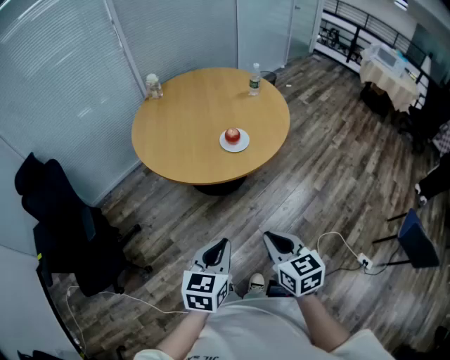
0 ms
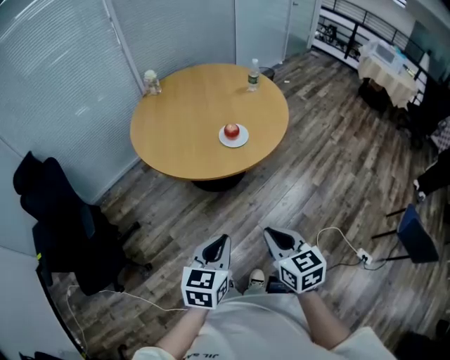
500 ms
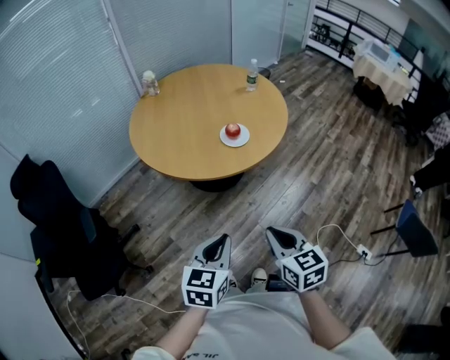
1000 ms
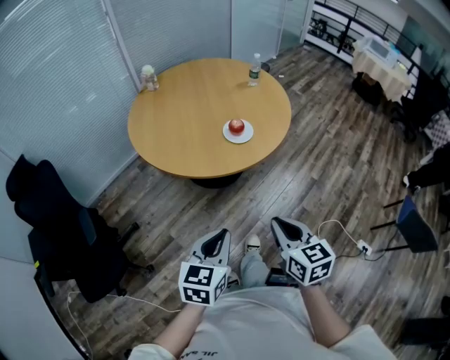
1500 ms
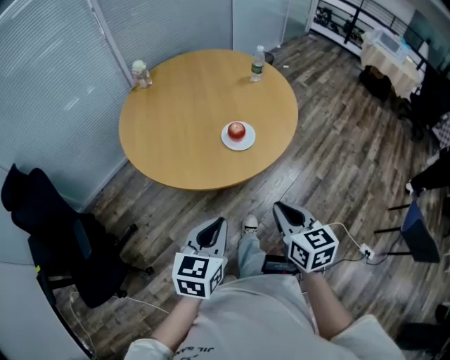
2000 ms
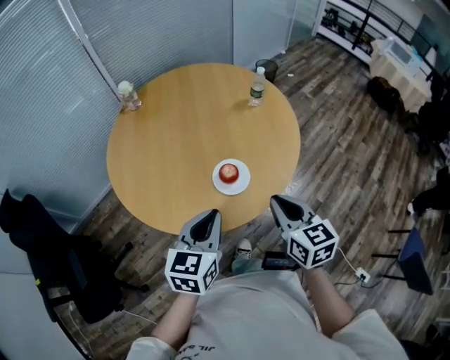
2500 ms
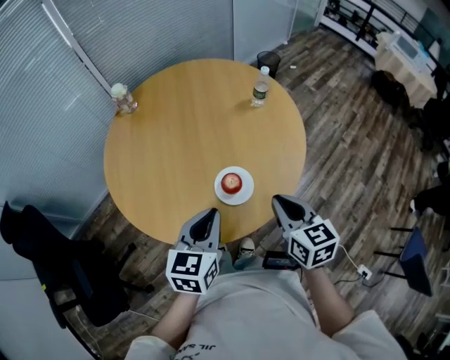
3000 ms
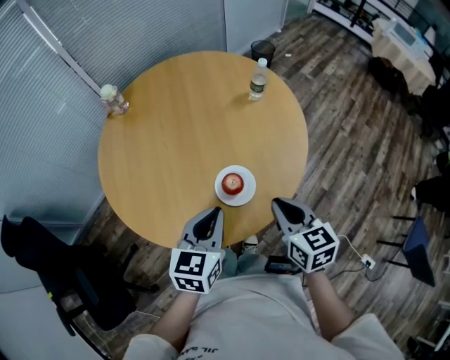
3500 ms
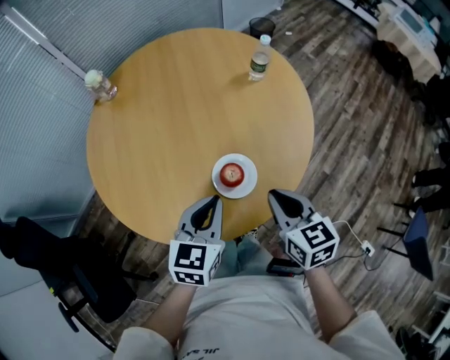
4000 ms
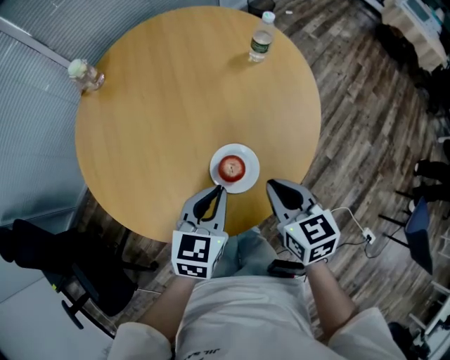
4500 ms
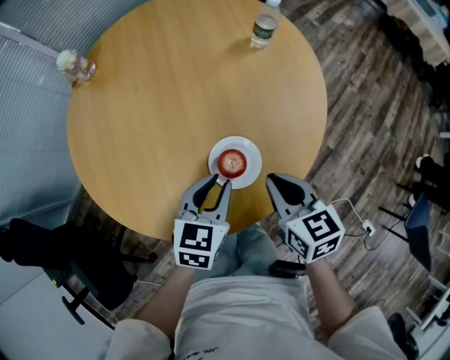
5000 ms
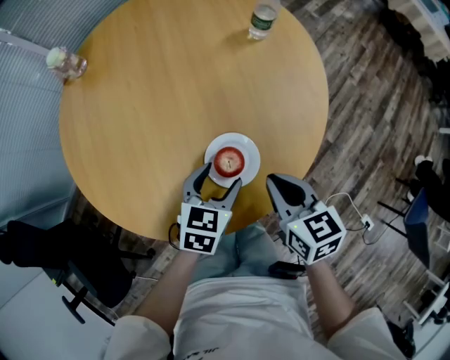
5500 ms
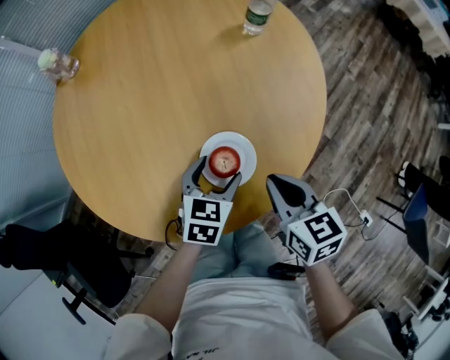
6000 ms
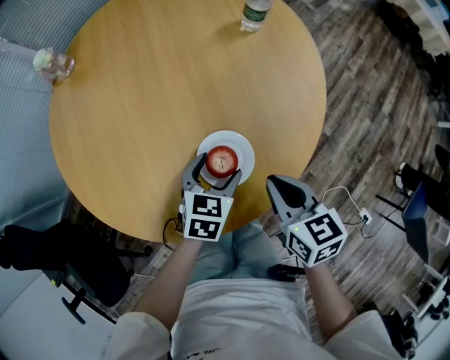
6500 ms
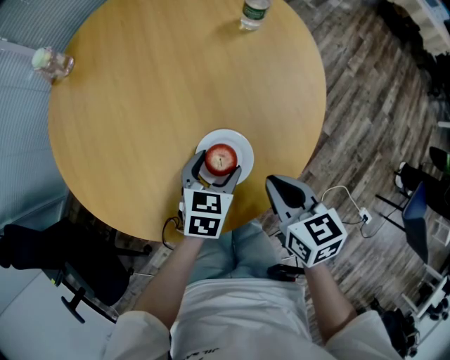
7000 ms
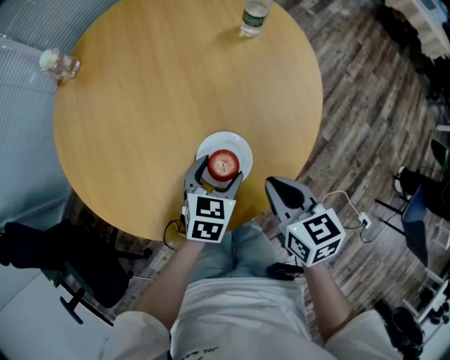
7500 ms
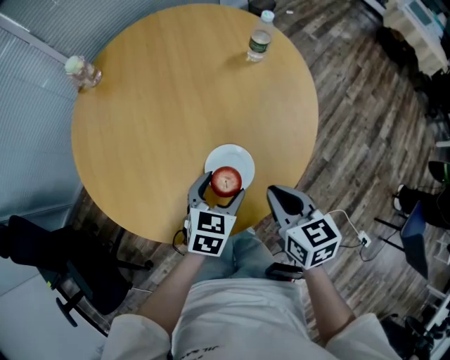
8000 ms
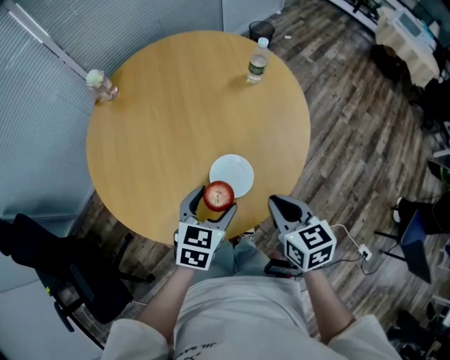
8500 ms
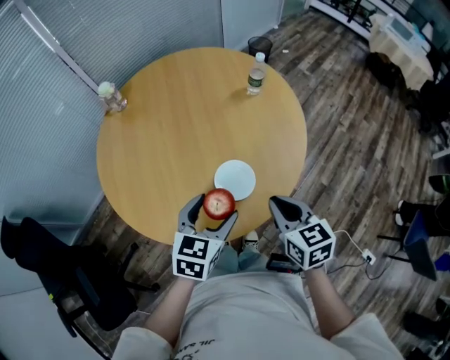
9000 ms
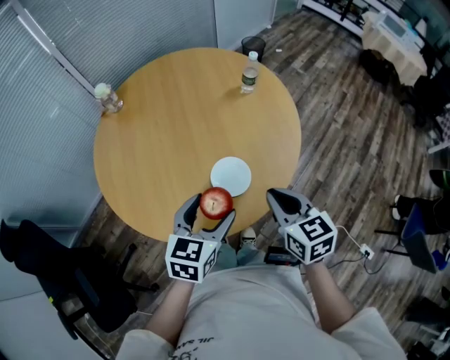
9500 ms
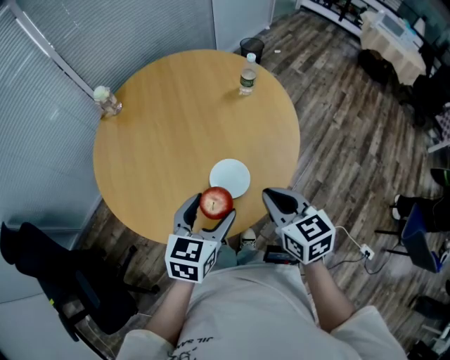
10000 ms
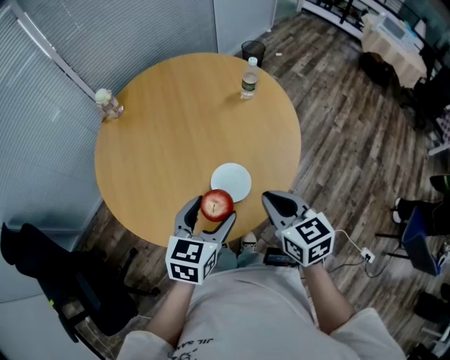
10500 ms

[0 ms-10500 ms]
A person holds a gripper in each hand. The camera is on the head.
0 ms to 2000 ms: The grippers both shift forward by roughly 15 cm.
2000 ms to 4000 ms: Both grippers move forward, roughly 30 cm.
4000 ms to 6500 ms: The right gripper goes approximately 10 cm downward. The left gripper is displaced downward by about 20 cm, swivels about 20 degrees, and opens.
6500 ms to 8500 ms: The right gripper goes roughly 5 cm upward, while the left gripper shifts approximately 15 cm upward and backward.
8500 ms to 10500 ms: Both grippers travel together upward, about 5 cm.

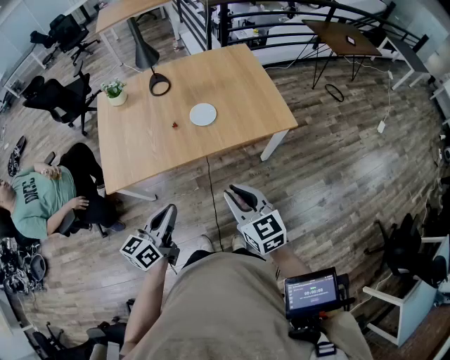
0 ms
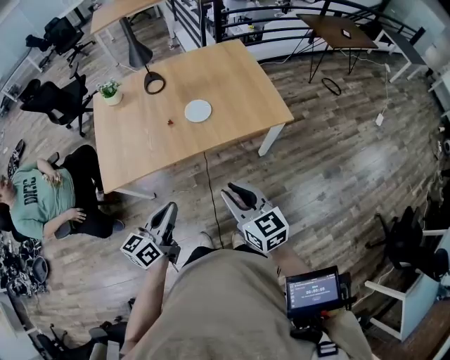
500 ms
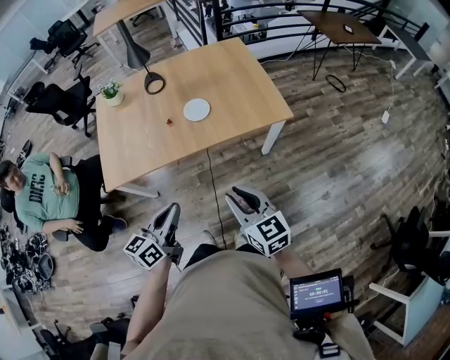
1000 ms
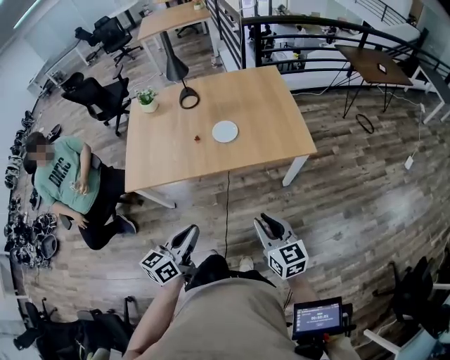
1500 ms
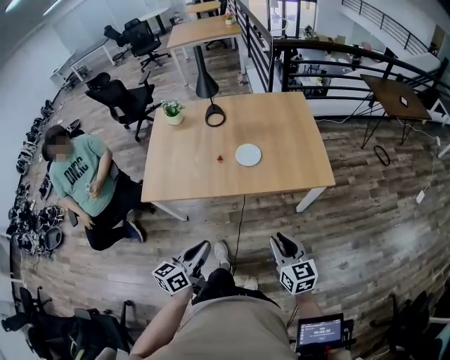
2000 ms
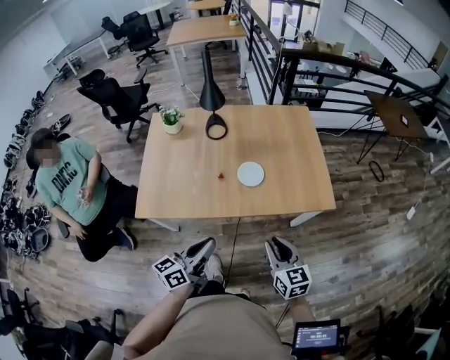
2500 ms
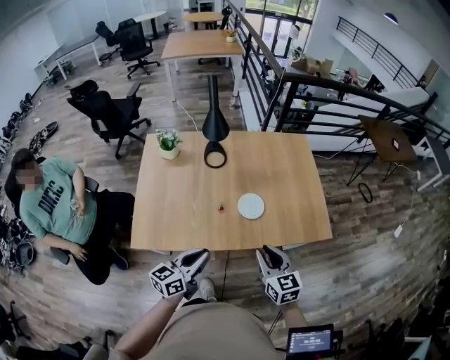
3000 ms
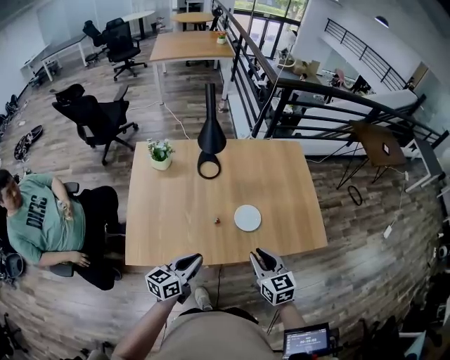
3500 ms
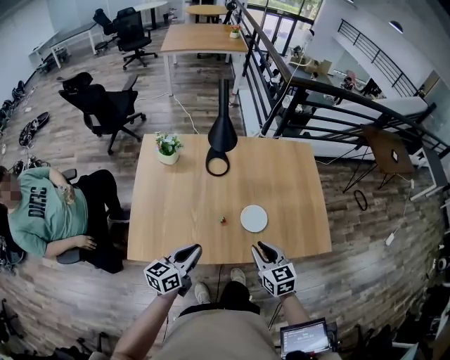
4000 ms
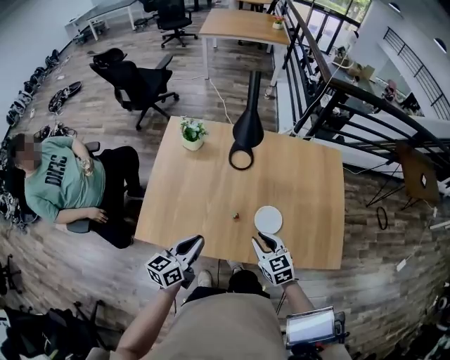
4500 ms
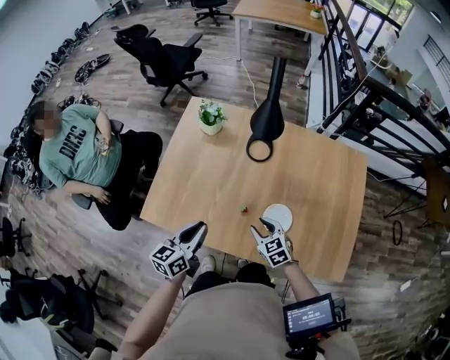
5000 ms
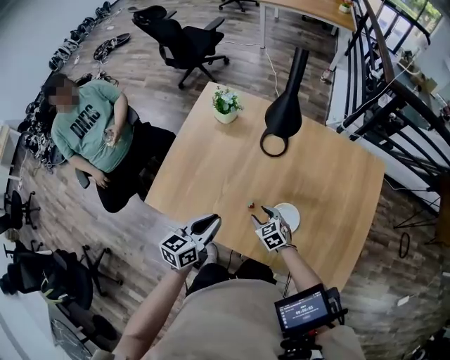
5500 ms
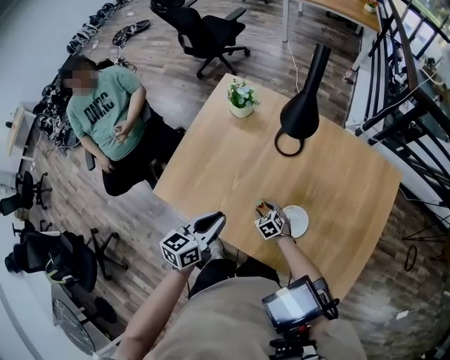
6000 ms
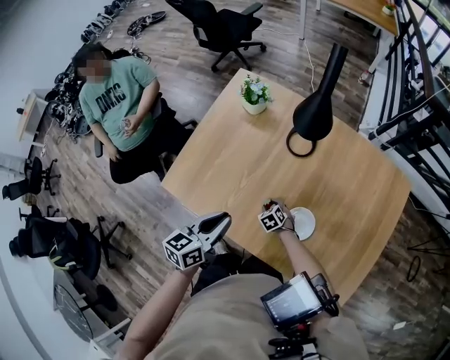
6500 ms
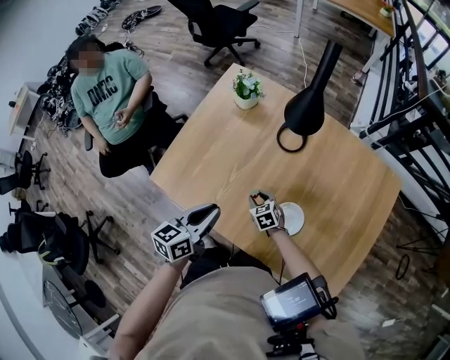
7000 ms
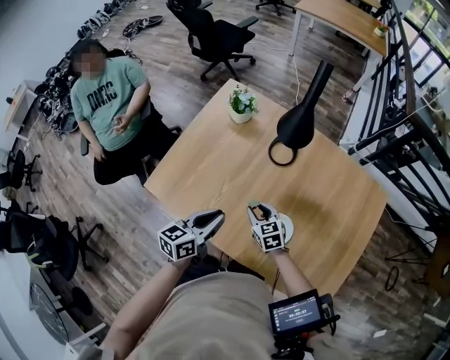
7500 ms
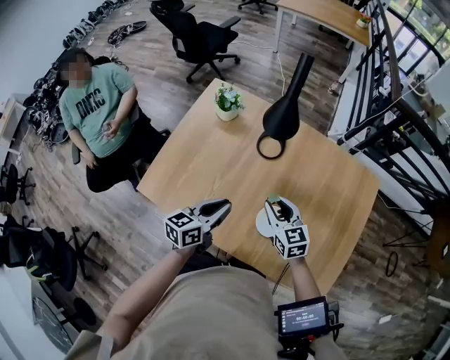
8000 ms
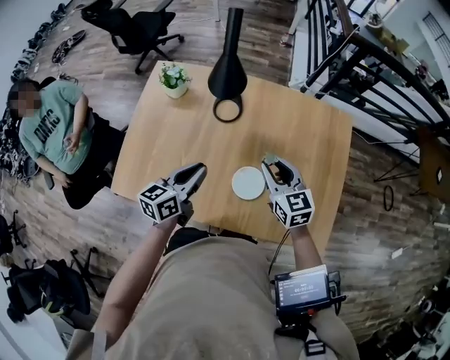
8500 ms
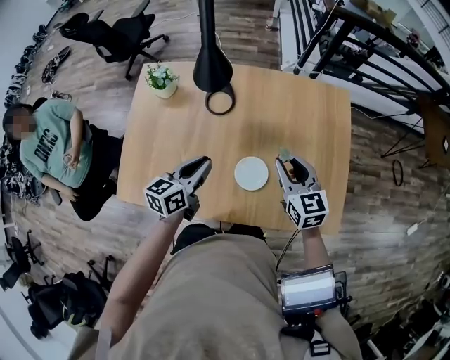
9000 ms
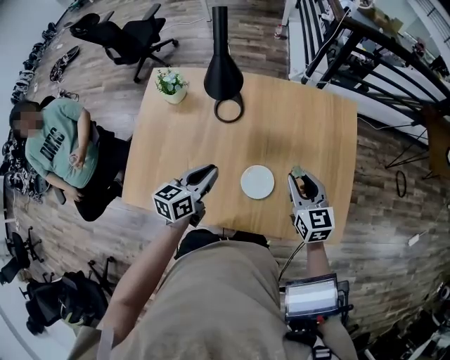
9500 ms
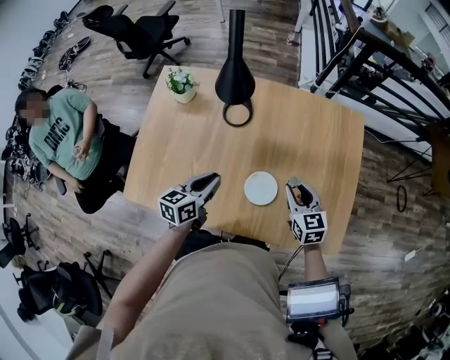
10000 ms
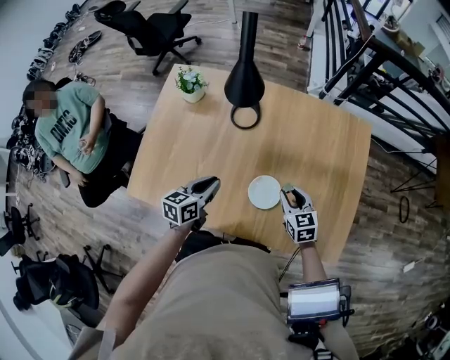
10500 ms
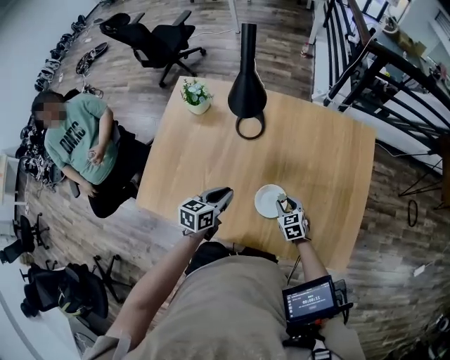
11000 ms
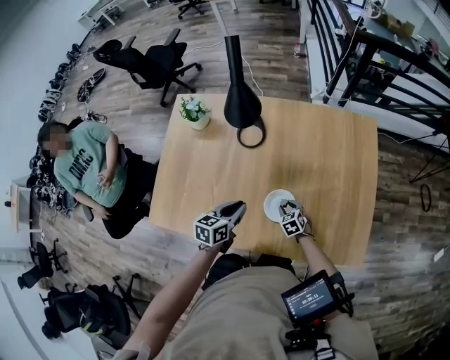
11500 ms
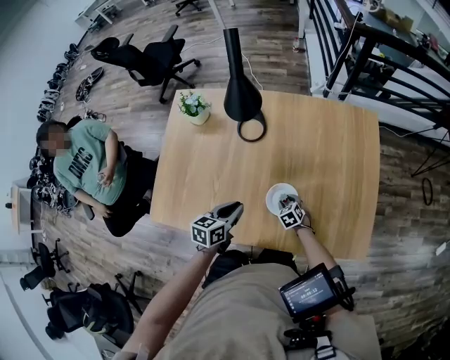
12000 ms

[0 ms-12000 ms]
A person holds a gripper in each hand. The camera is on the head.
0 ms to 2000 ms: The right gripper moves to the right and downward, about 10 cm, while the left gripper heads to the right, covering approximately 5 cm.
2000 ms to 4000 ms: Both grippers move forward and to the left, about 40 cm.
4000 ms to 6000 ms: The right gripper goes roughly 35 cm downward, changes its angle by about 50 degrees, and opens up, while the left gripper ends up about 10 cm from where it was, and turns by roughly 30 degrees.
6000 ms to 8000 ms: The right gripper is displaced upward by about 25 cm, and tilts its fingers roughly 30 degrees upward, while the left gripper shifts about 5 cm to the right.
8000 ms to 10000 ms: The left gripper shifts by approximately 5 cm, while the right gripper goes approximately 15 cm to the right, and turns by some 20 degrees.
10000 ms to 12000 ms: The left gripper heads downward, covering approximately 5 cm. Meanwhile the right gripper is displaced downward by some 25 cm, and angles its fingers downward, by about 30 degrees.

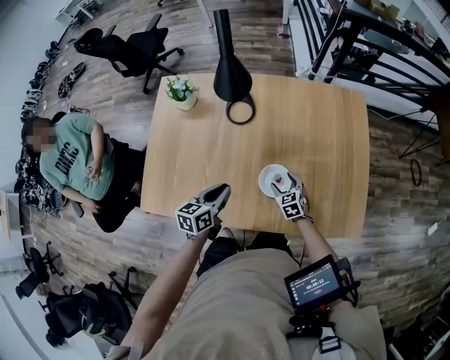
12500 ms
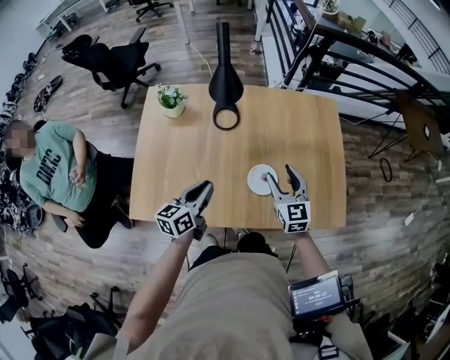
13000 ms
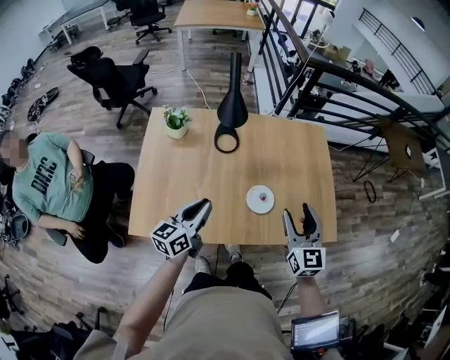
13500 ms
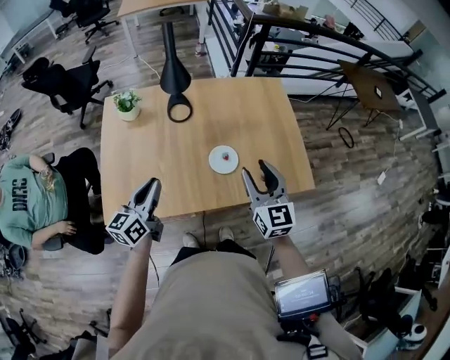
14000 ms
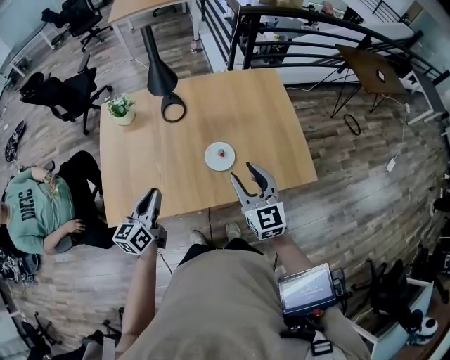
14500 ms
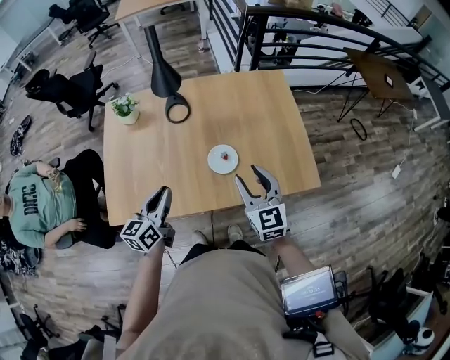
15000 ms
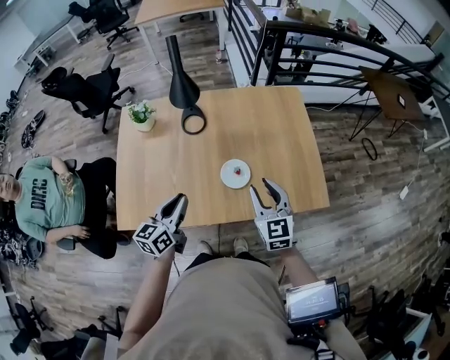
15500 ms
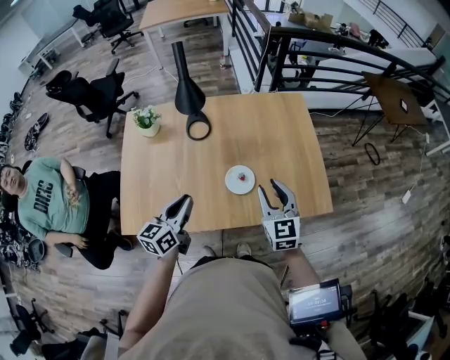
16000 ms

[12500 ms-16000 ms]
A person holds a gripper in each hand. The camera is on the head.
12500 ms to 14500 ms: The left gripper is displaced backward, upward and to the left by roughly 20 cm. Meanwhile the right gripper travels upward and backward by roughly 40 cm, and angles its fingers upward, by roughly 40 degrees.
14500 ms to 16000 ms: The left gripper ends up approximately 5 cm from where it was. The right gripper heads forward, covering approximately 5 cm.

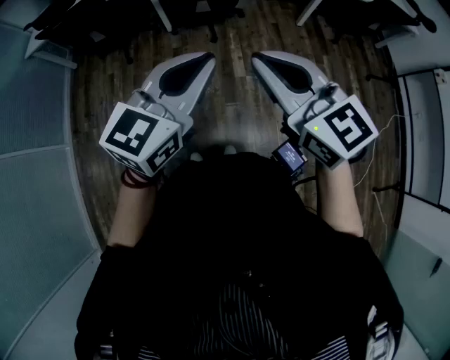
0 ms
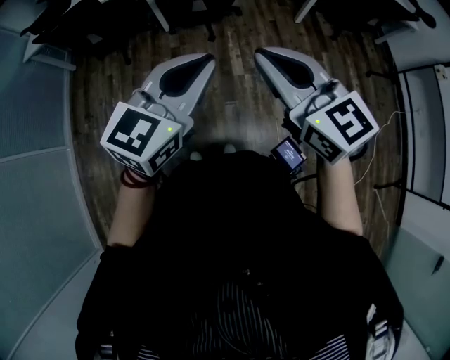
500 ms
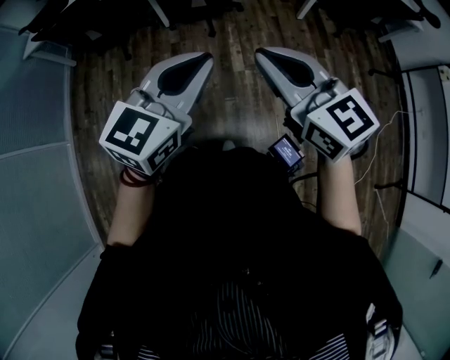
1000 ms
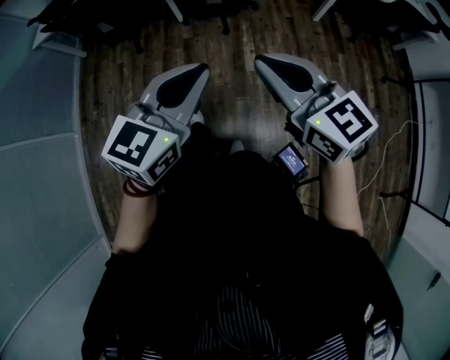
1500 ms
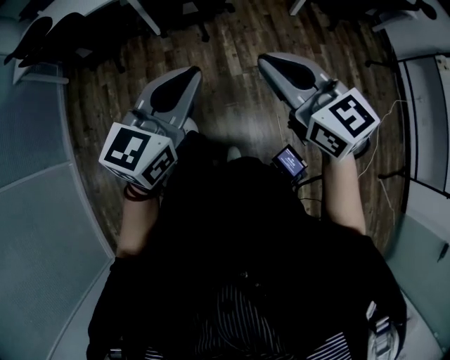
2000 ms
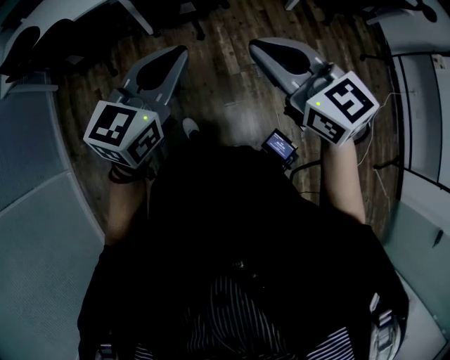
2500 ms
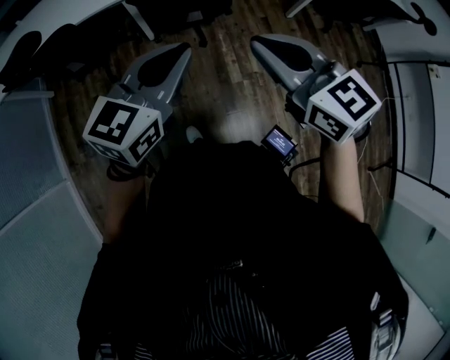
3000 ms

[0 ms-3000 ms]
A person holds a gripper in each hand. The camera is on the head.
0 ms to 1500 ms: The left gripper moves some 5 cm. The right gripper heads downward, covering about 5 cm.
1500 ms to 3000 ms: The two grippers go about 30 cm forward and to the left.
